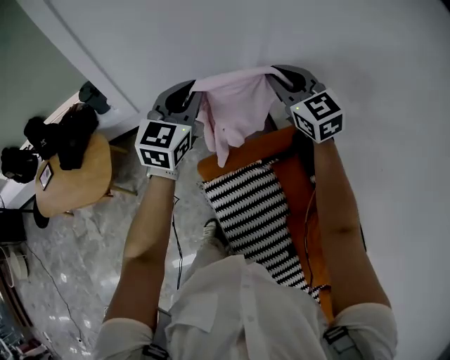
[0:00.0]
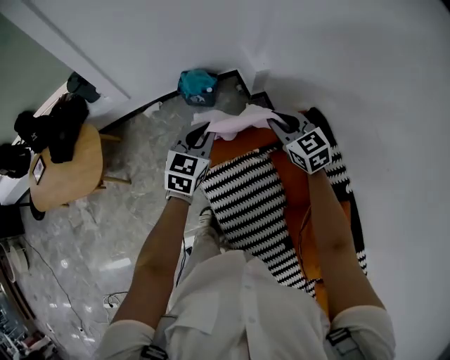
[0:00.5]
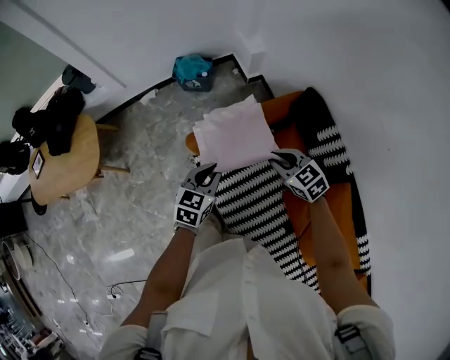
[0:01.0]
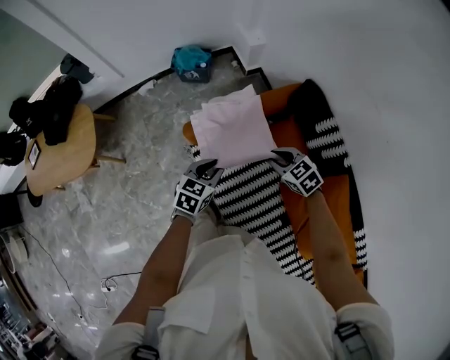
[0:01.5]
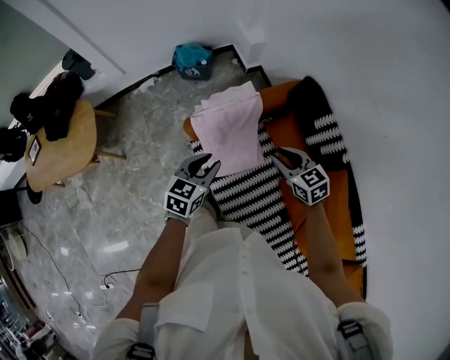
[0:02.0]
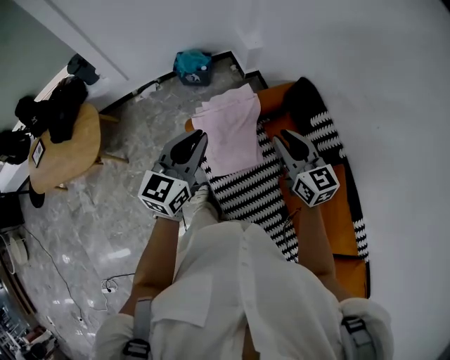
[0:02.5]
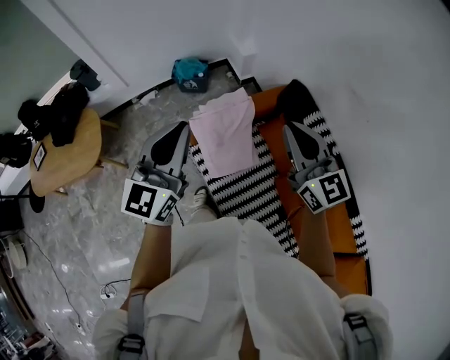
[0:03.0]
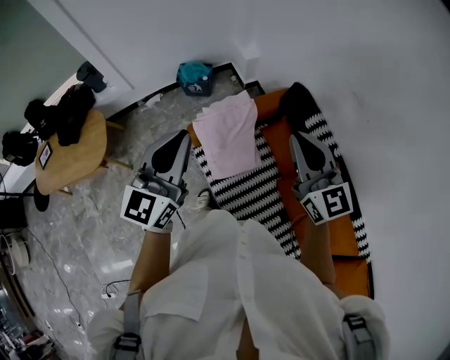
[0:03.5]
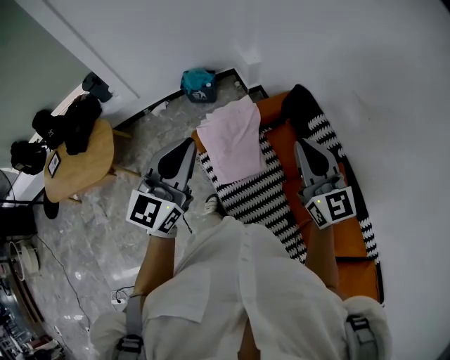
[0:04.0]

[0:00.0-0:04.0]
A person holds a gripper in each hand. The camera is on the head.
0:00.0 to 0:02.0: The two grippers go roughly 40 cm downward and backward. The right gripper turns by about 40 degrees, while the left gripper changes its angle by about 40 degrees, and opens.
0:02.0 to 0:04.0: The two grippers go roughly 30 cm upward. The left gripper angles its fingers upward, by some 30 degrees, and closes its fingers; the right gripper points its fingers roughly 40 degrees further upward, and closes its fingers.

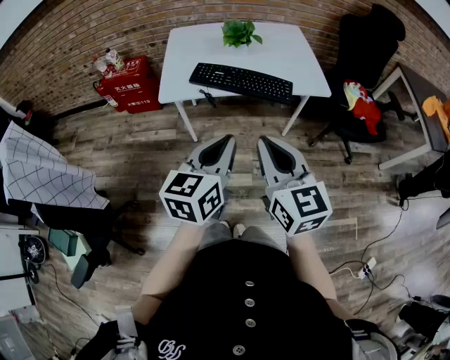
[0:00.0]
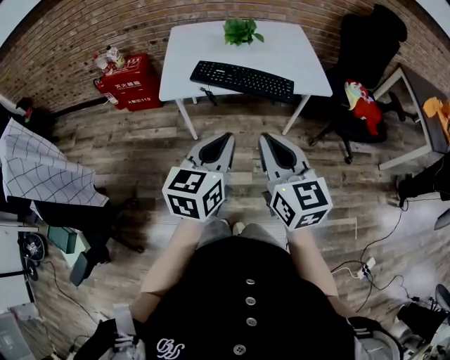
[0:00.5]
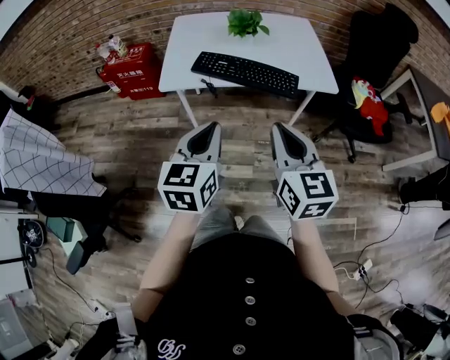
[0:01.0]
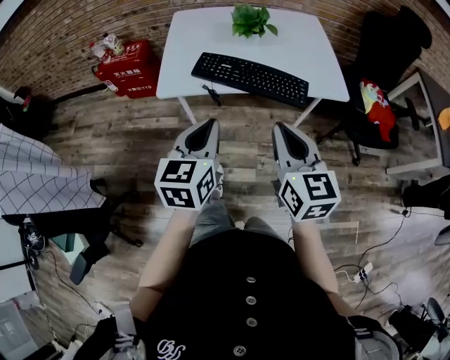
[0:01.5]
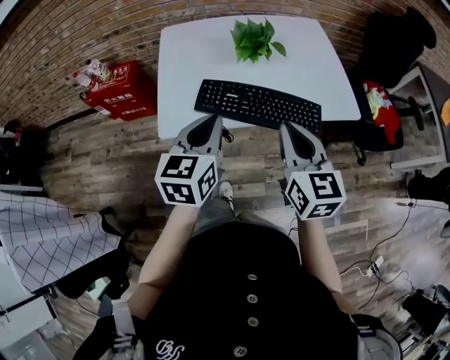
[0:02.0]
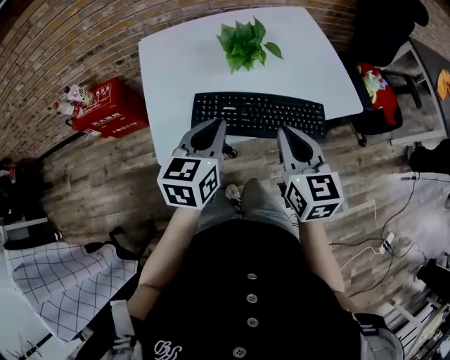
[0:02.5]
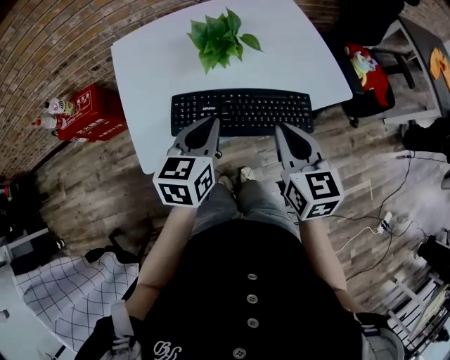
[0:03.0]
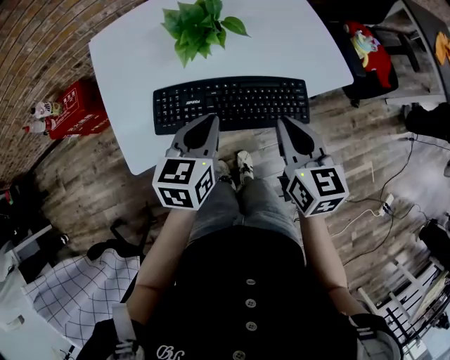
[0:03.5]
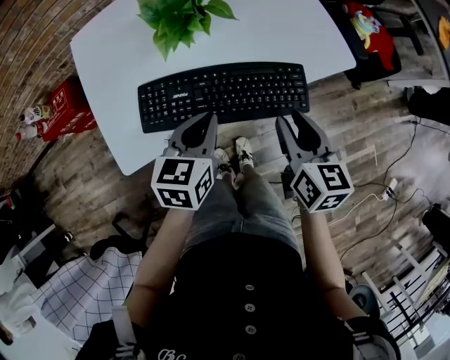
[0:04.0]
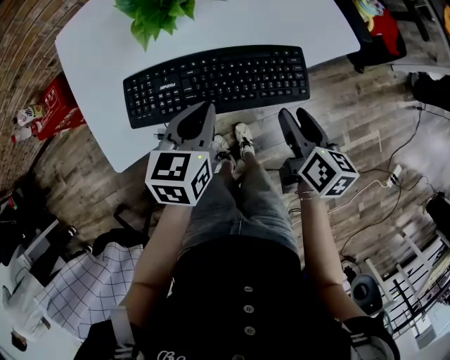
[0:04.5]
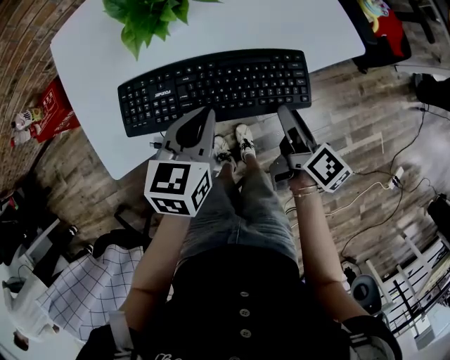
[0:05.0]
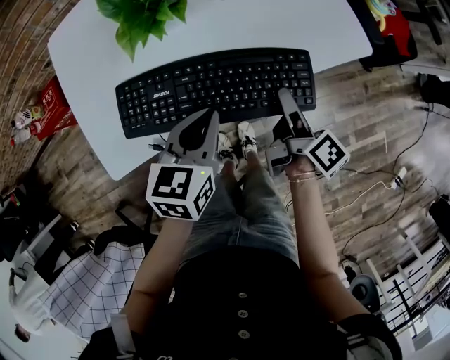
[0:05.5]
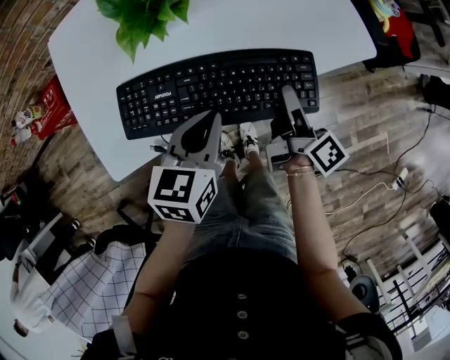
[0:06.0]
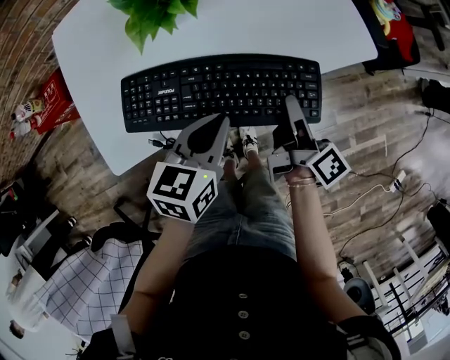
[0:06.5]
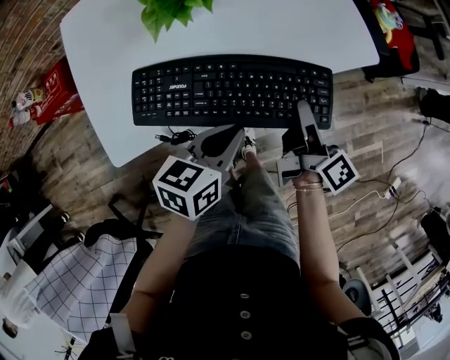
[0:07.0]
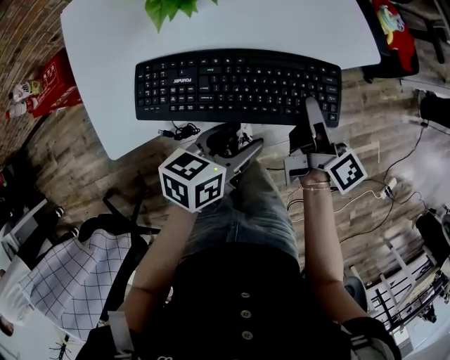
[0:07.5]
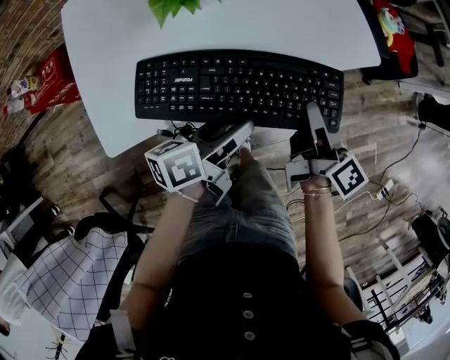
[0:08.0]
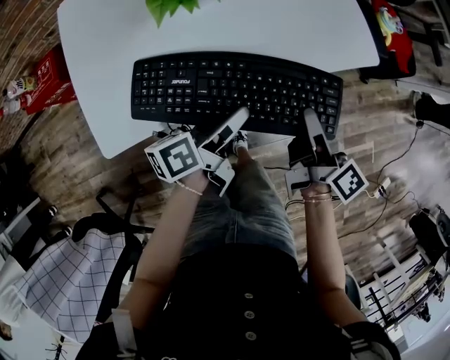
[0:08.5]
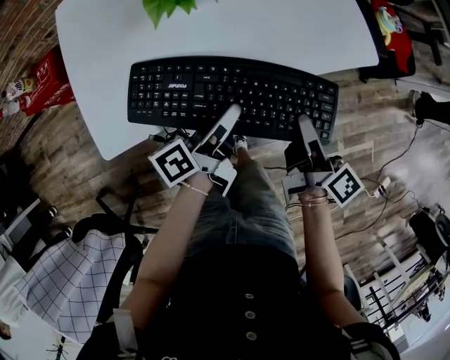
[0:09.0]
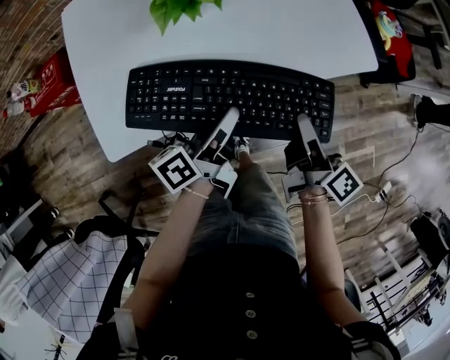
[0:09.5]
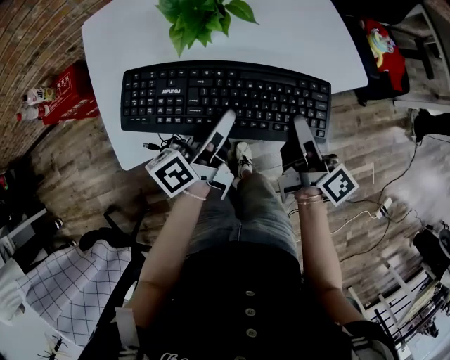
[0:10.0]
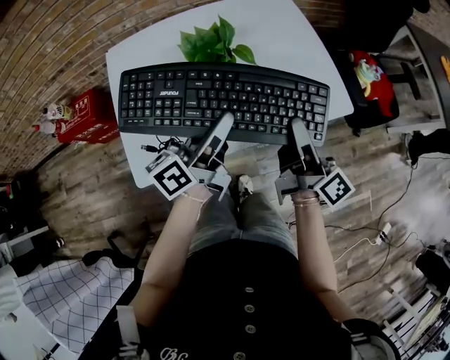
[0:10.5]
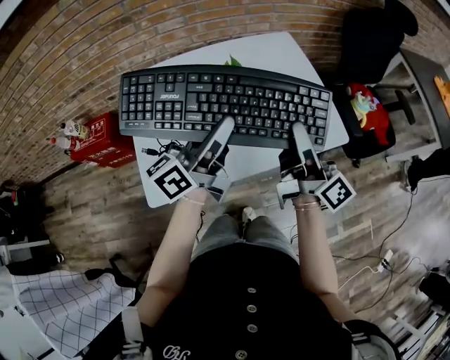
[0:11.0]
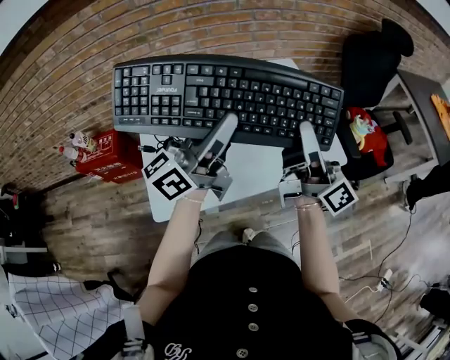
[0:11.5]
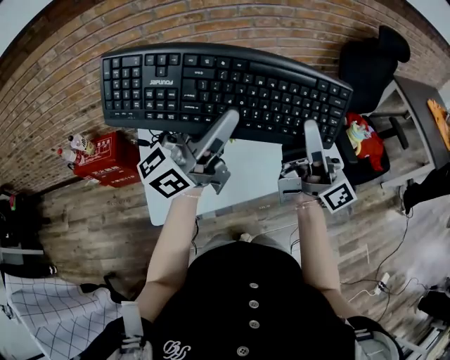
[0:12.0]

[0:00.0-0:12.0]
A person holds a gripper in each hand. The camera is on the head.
0:00.0 to 0:02.0: The grippers both shift forward by approximately 25 cm.
0:02.0 to 0:04.0: The right gripper is displaced downward, to the right and forward by about 15 cm, turns by some 30 degrees, and opens up. Meanwhile the left gripper goes approximately 15 cm downward, forward and to the right, and swivels about 30 degrees.
0:04.0 to 0:06.0: The right gripper goes some 10 cm downward and forward, and twists some 50 degrees clockwise, seen from behind.
0:06.0 to 0:08.0: The right gripper moves upward, roughly 5 cm, while the left gripper rolls counterclockwise, seen from behind, by about 40 degrees, and opens up.
0:08.0 to 0:10.0: The right gripper moves upward, about 5 cm. Meanwhile the left gripper travels upward and forward by roughly 10 cm, turns by about 20 degrees, and closes.
0:10.0 to 0:12.0: The two grippers go roughly 30 cm upward. The right gripper tips its fingers upward by some 40 degrees. The left gripper tips its fingers upward by about 30 degrees.

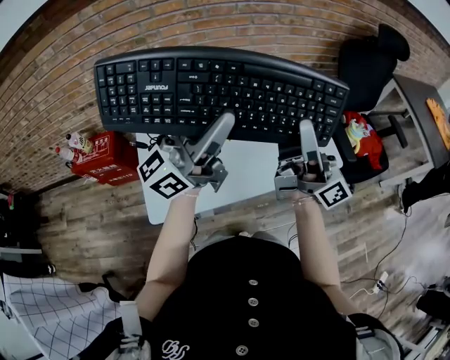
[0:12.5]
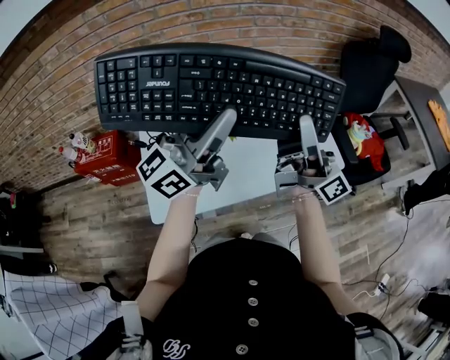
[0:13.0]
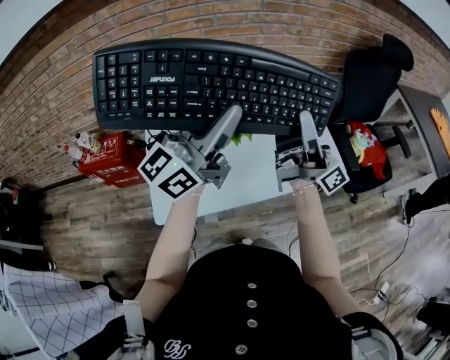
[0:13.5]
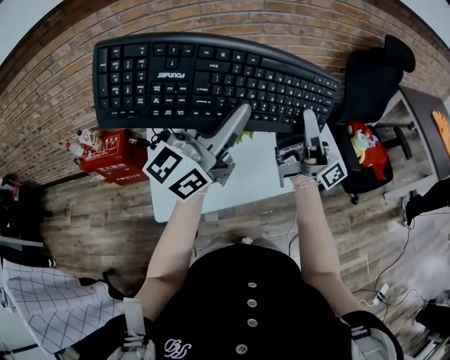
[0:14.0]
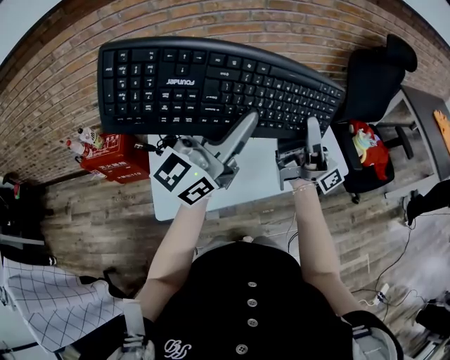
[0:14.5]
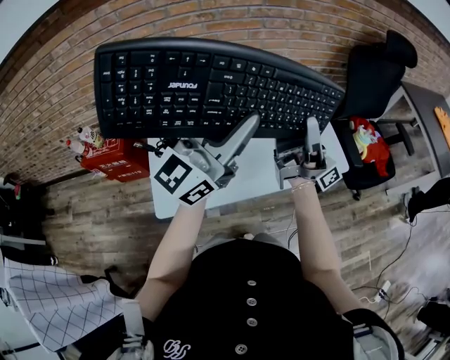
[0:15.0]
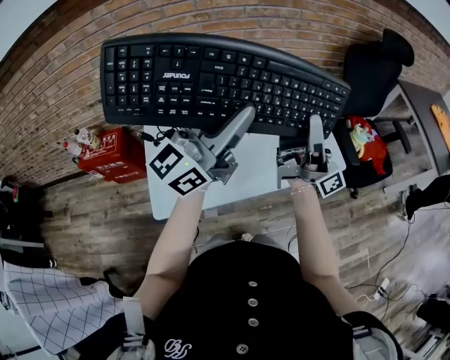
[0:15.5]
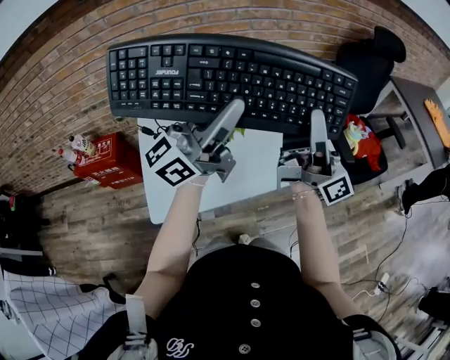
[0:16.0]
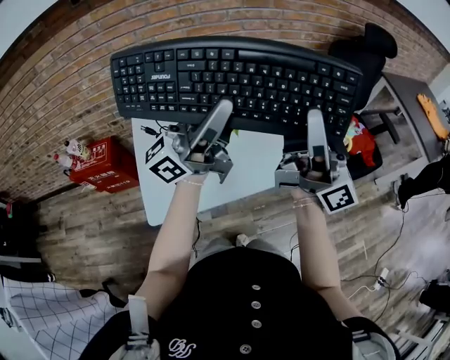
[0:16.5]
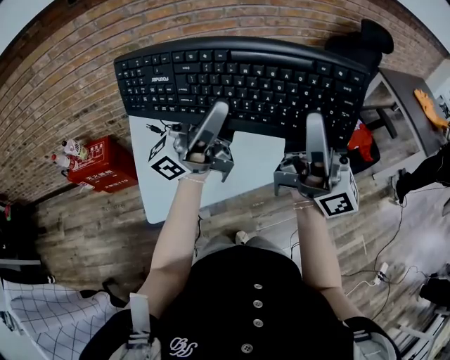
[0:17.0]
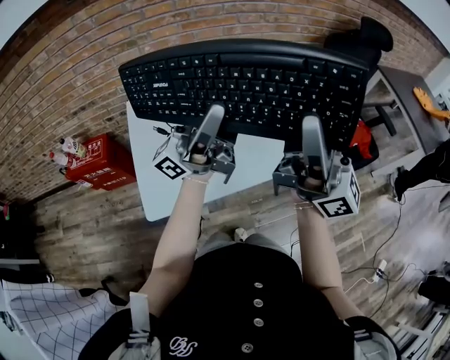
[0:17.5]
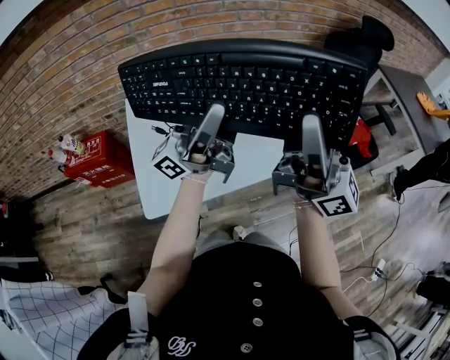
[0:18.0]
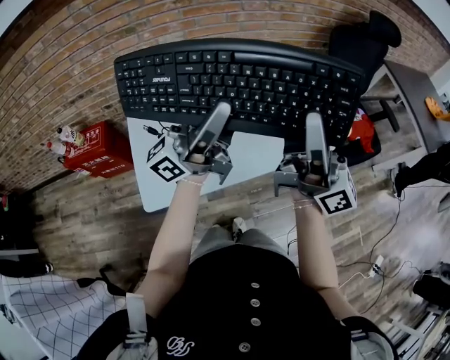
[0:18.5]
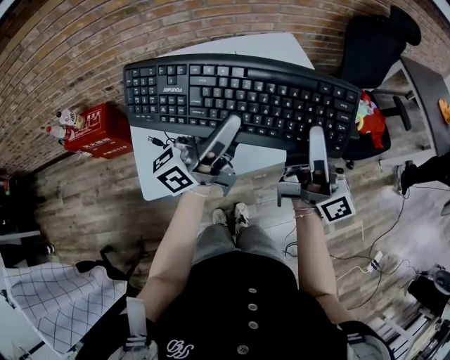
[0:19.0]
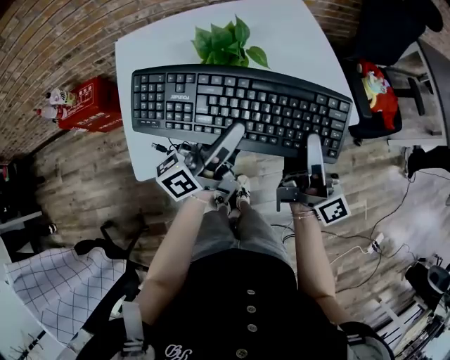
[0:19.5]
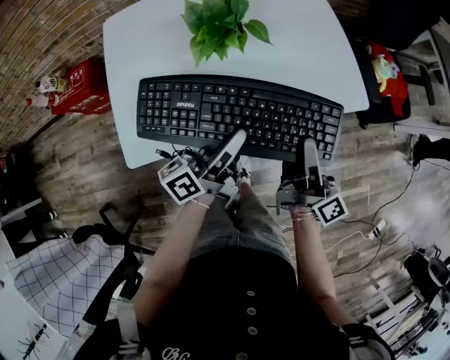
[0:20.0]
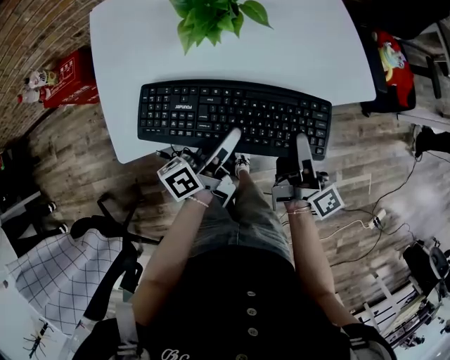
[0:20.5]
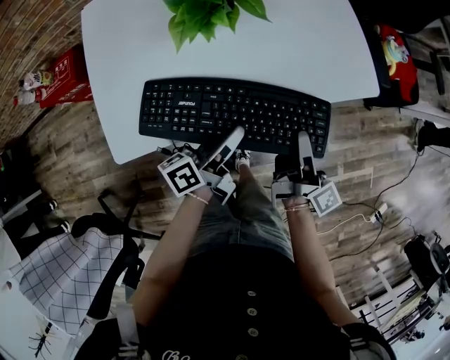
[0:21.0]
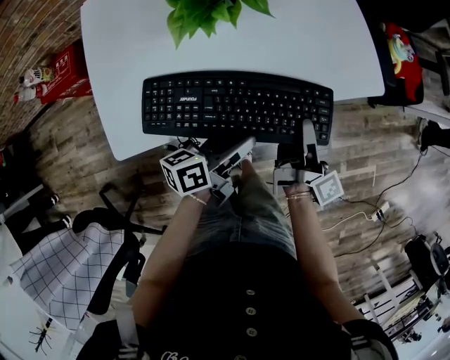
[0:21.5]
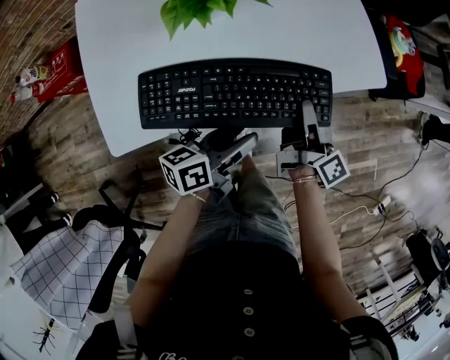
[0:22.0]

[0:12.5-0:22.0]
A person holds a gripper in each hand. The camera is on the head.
0:12.5 to 0:14.5: The left gripper rotates some 20 degrees, while the right gripper changes its angle by about 20 degrees.
0:14.5 to 0:16.5: The right gripper shifts some 10 cm upward and backward, and rotates some 30 degrees, while the left gripper changes its angle by about 40 degrees.
0:16.5 to 0:18.0: There are only small adjustments of the grippers.
0:18.0 to 0:20.0: Both grippers move downward, some 30 cm. The right gripper points its fingers some 30 degrees further downward, while the left gripper tilts its fingers approximately 50 degrees downward.
0:20.0 to 0:22.0: The left gripper shifts roughly 10 cm downward and to the right, and turns by roughly 30 degrees; the right gripper heads downward, covering approximately 15 cm.

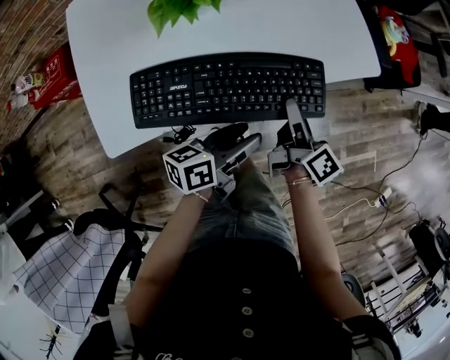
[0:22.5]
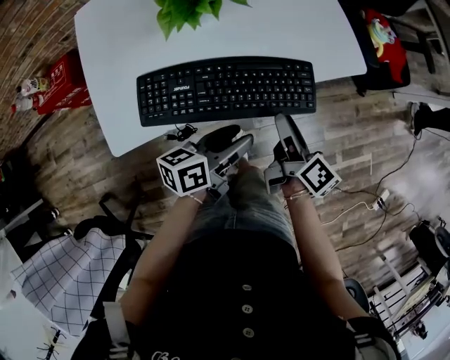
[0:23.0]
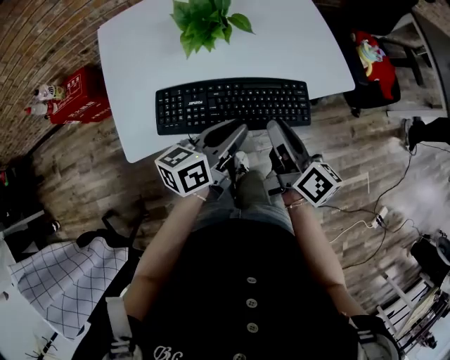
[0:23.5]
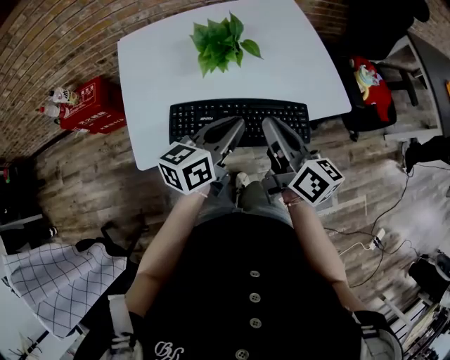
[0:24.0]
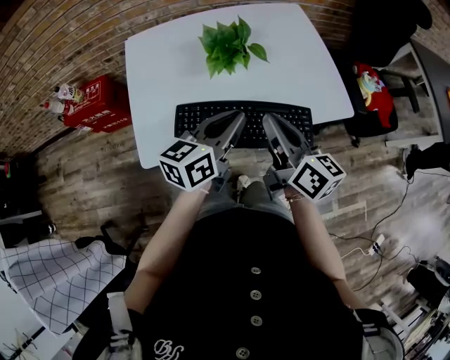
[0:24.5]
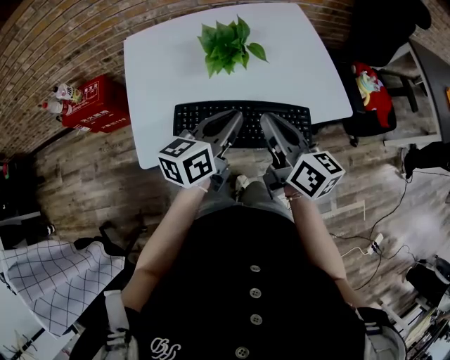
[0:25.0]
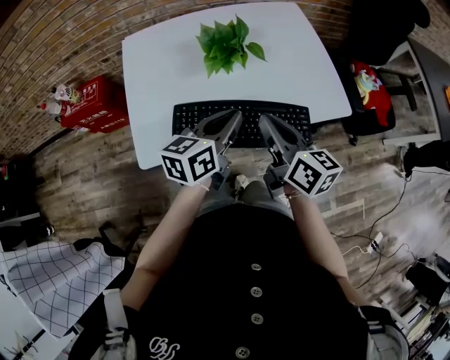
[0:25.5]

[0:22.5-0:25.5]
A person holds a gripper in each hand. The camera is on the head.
0:22.5 to 0:24.0: Both grippers travel together upward and to the left, roughly 20 cm. The left gripper changes its angle by some 30 degrees, and closes. The right gripper rotates approximately 30 degrees, and closes.
0:24.0 to 0:25.5: The grippers move only a little.
